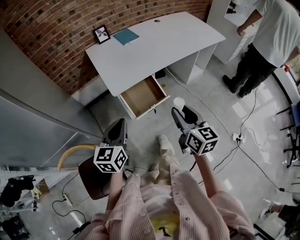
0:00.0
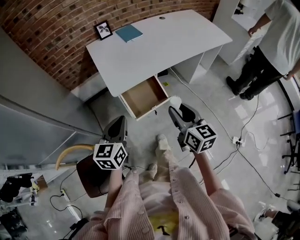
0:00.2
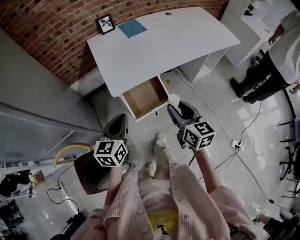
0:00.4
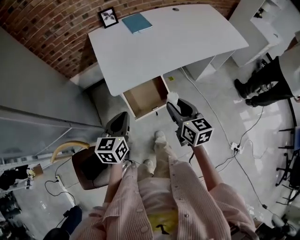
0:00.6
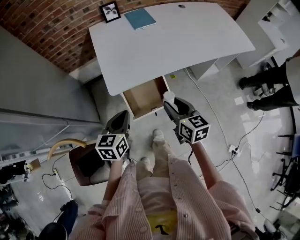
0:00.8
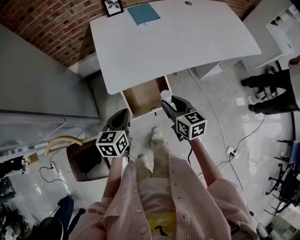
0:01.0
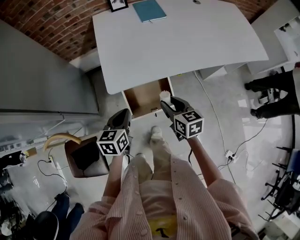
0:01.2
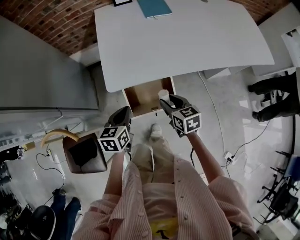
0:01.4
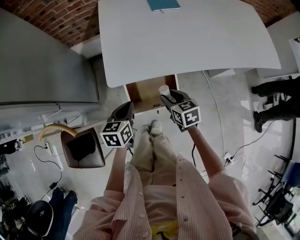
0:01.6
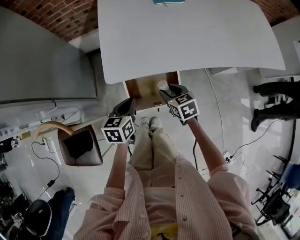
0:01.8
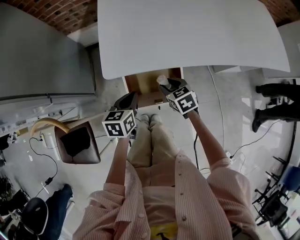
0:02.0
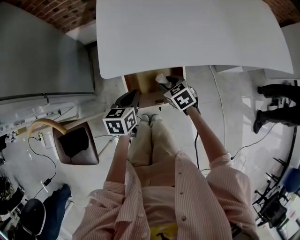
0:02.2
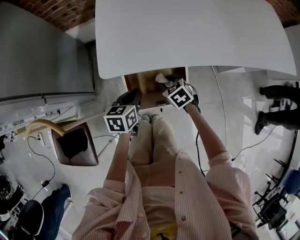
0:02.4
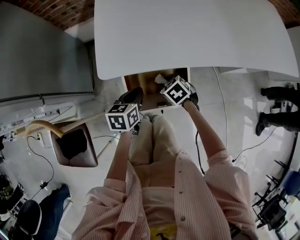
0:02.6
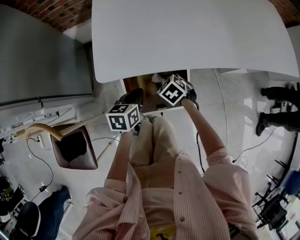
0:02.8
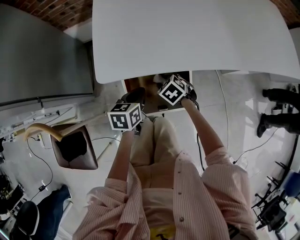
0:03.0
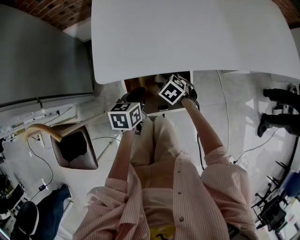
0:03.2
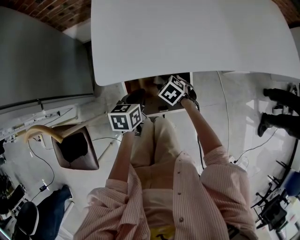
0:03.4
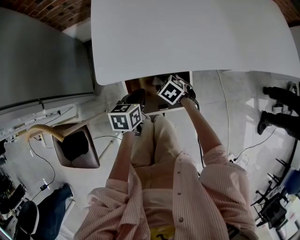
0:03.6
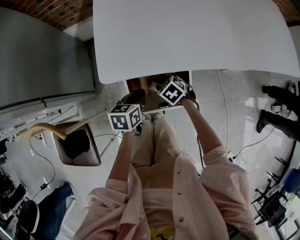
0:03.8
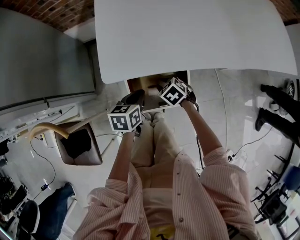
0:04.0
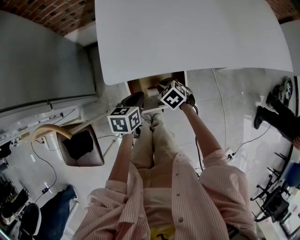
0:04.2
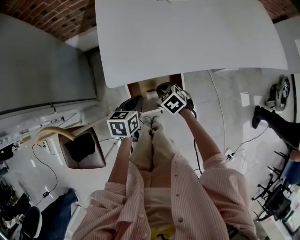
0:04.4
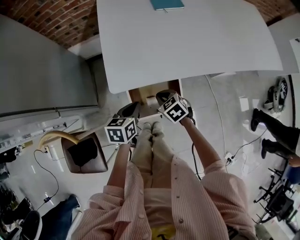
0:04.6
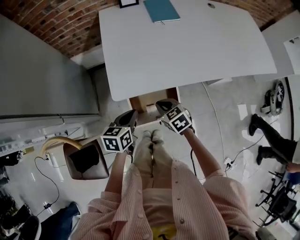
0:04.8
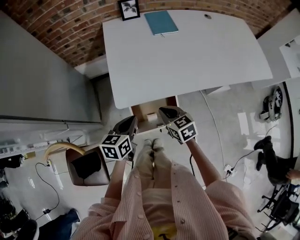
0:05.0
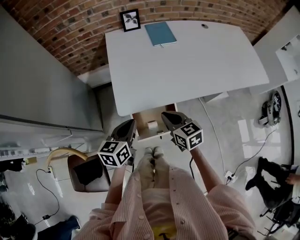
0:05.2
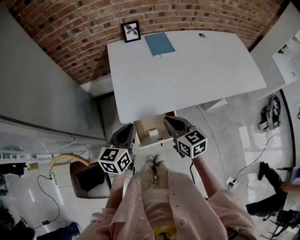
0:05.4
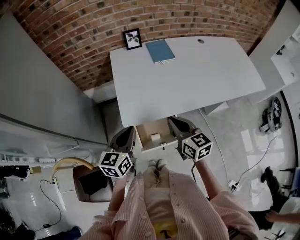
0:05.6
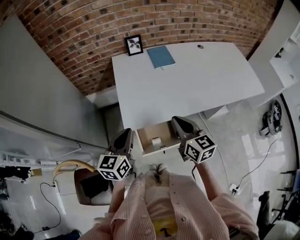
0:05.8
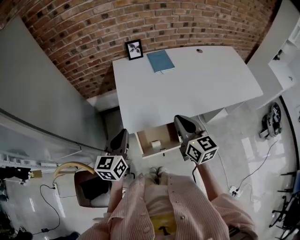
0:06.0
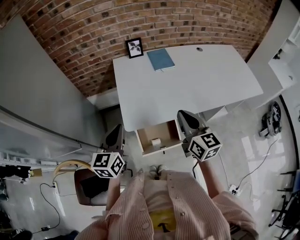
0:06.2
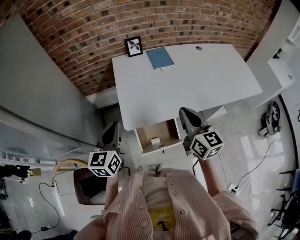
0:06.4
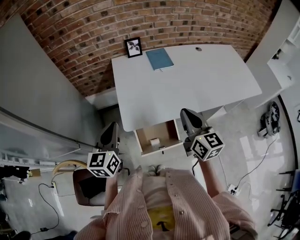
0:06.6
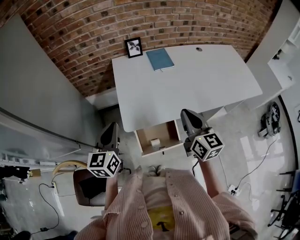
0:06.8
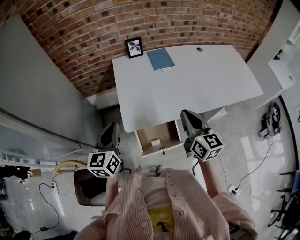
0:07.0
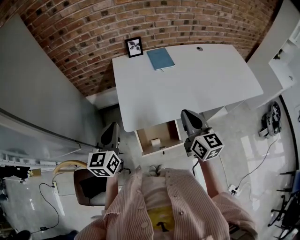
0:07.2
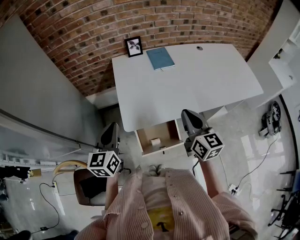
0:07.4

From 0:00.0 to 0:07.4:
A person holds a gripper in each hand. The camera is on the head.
From 0:00.0 to 0:01.4: The left gripper goes roughly 25 cm downward and forward, and rotates approximately 30 degrees. The right gripper heads forward and downward, covering approximately 35 cm, and rotates roughly 40 degrees.
From 0:01.4 to 0:03.0: The right gripper moves downward and forward, some 25 cm, and turns by roughly 50 degrees. Meanwhile the left gripper shifts some 20 cm downward.
From 0:03.0 to 0:04.4: The grippers both shift upward by roughly 10 cm. The right gripper closes its fingers.
From 0:04.4 to 0:06.0: The grippers both shift upward by roughly 35 cm. The left gripper changes its angle by some 30 degrees; the right gripper tips its fingers upward by roughly 50 degrees.
From 0:06.0 to 0:07.4: The grippers stay close to where they were, moving slightly.

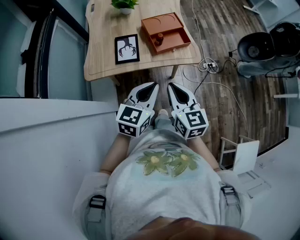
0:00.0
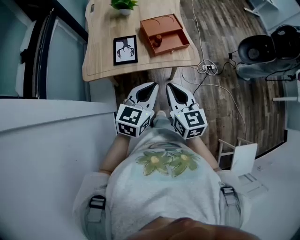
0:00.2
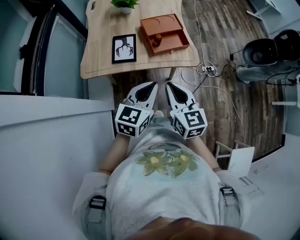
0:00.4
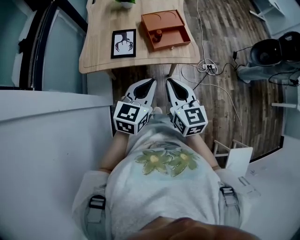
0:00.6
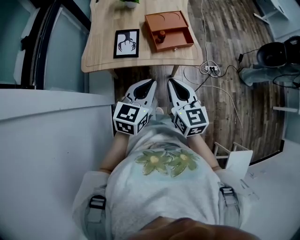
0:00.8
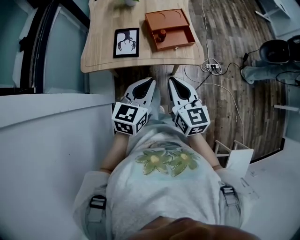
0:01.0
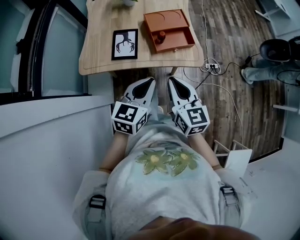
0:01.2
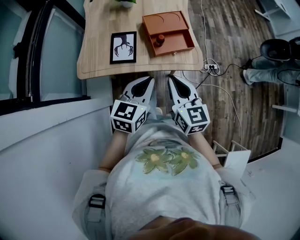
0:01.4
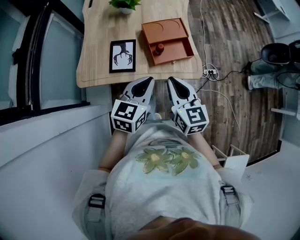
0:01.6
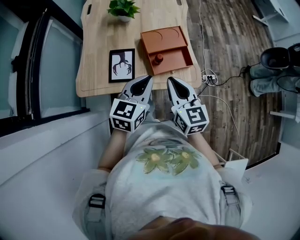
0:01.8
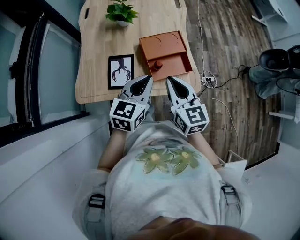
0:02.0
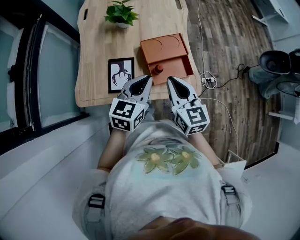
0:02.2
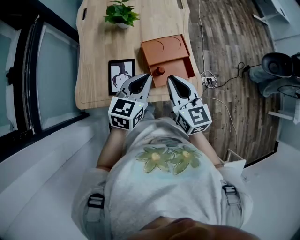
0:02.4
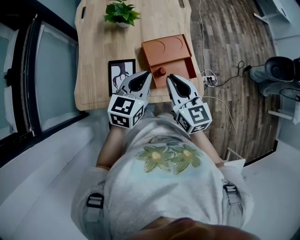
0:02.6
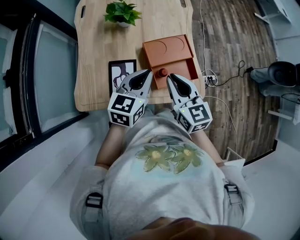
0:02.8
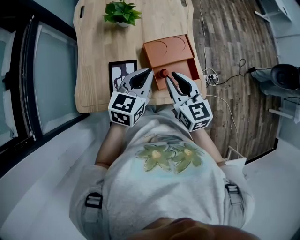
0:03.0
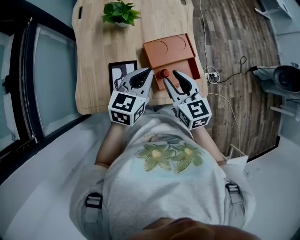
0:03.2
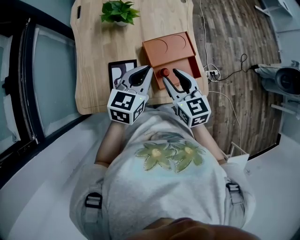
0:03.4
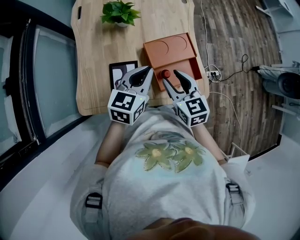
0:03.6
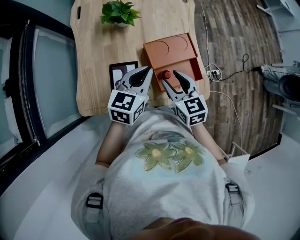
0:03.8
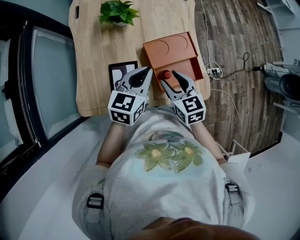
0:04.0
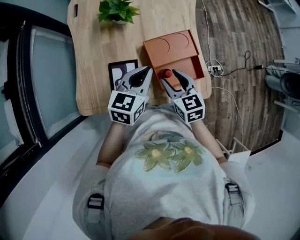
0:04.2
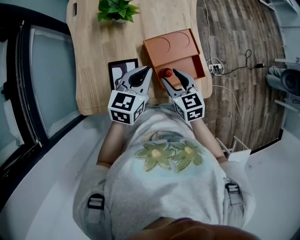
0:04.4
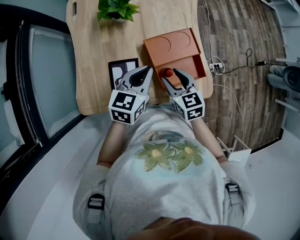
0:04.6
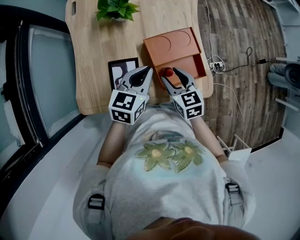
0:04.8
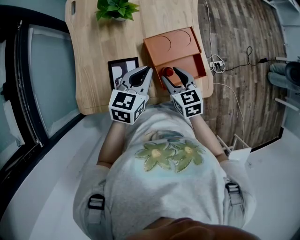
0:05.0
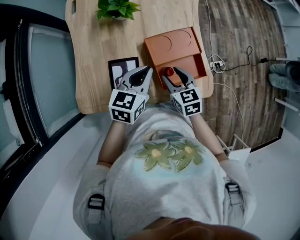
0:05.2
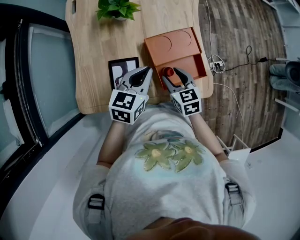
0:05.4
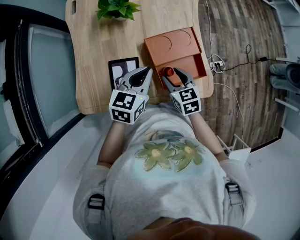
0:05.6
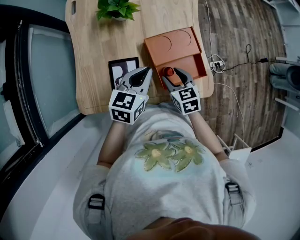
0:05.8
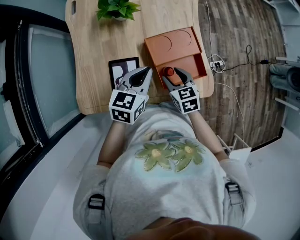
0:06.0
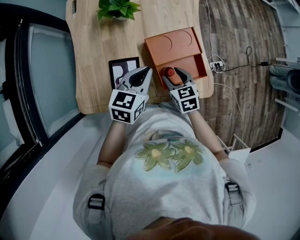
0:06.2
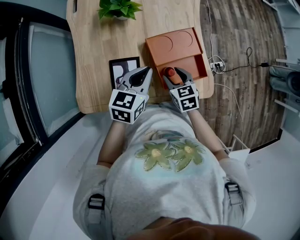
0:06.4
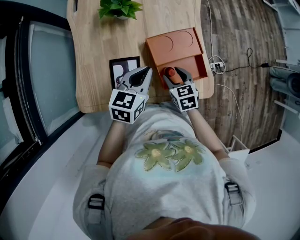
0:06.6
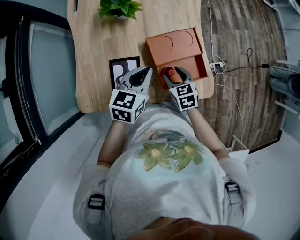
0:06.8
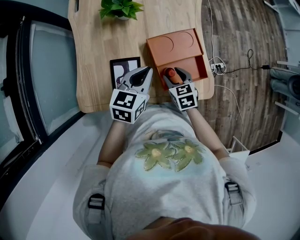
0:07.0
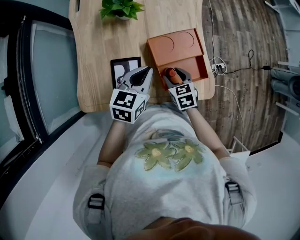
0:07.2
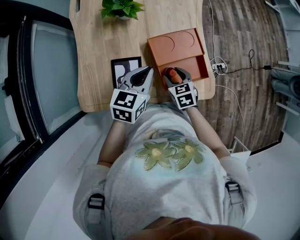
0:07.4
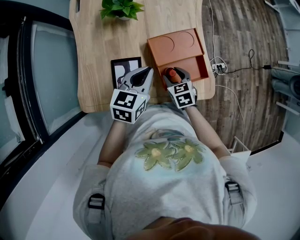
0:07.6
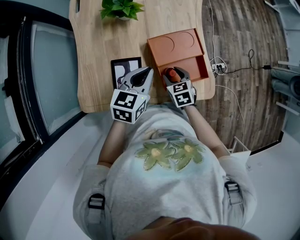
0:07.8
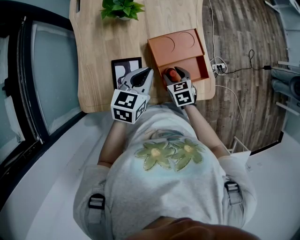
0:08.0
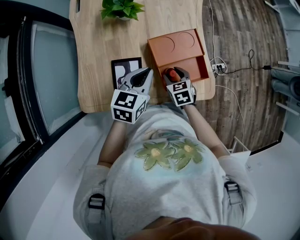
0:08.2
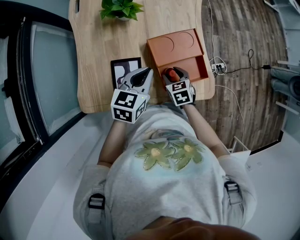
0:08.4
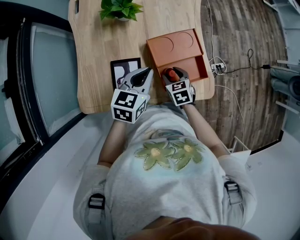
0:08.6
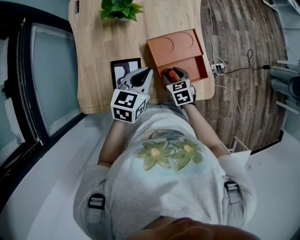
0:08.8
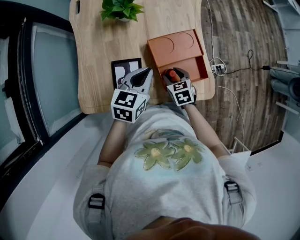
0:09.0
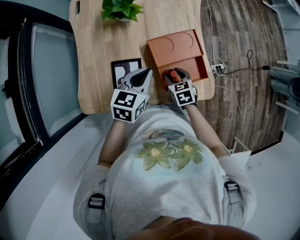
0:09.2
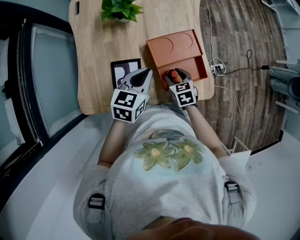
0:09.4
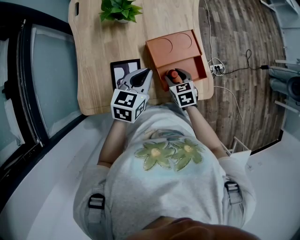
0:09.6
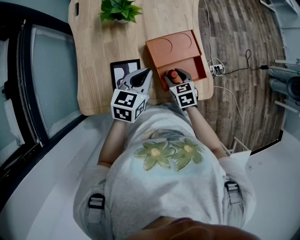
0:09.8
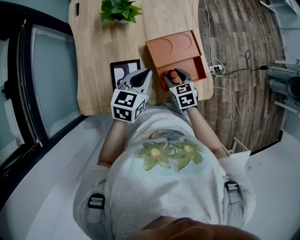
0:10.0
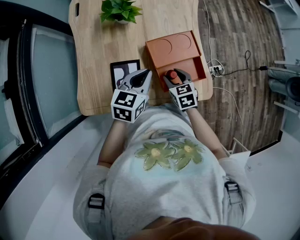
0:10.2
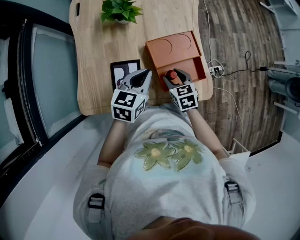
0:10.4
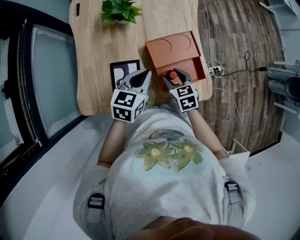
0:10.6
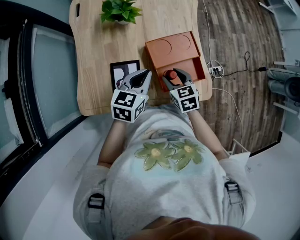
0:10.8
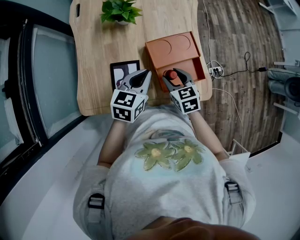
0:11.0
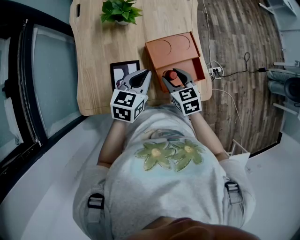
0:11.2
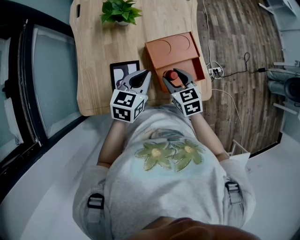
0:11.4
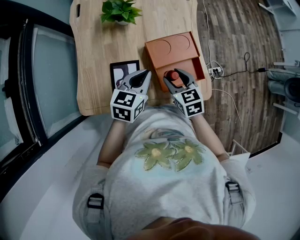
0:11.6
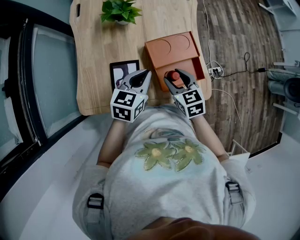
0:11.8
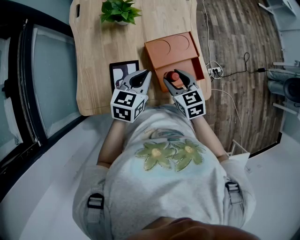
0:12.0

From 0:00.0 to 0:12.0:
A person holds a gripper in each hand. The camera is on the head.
From 0:00.0 to 0:01.6: The two grippers go approximately 15 cm forward.
From 0:01.6 to 0:03.0: Both grippers travel together forward, roughly 20 cm.
From 0:03.0 to 0:04.4: The right gripper travels downward by roughly 10 cm, and opens up. Meanwhile the left gripper moves approximately 5 cm.
From 0:04.4 to 0:06.0: The right gripper moves downward, roughly 5 cm.
From 0:06.0 to 0:10.4: There are only small adjustments of the grippers.
From 0:10.4 to 0:12.0: The right gripper is displaced upward by some 5 cm.

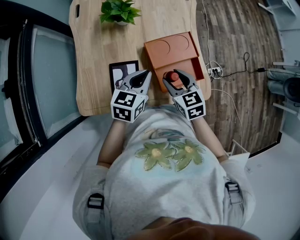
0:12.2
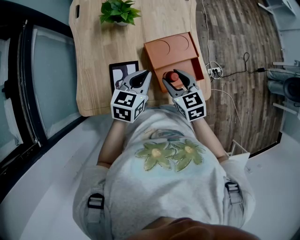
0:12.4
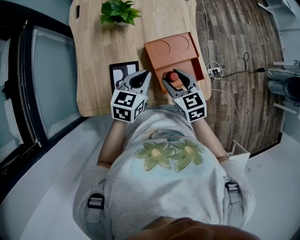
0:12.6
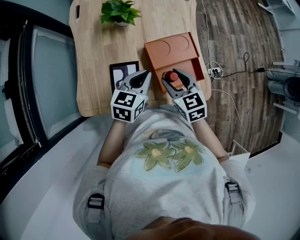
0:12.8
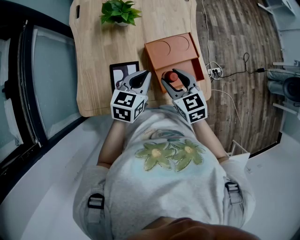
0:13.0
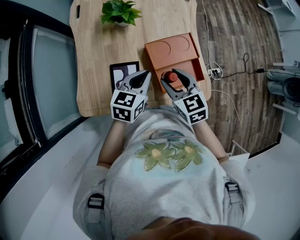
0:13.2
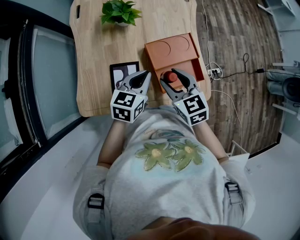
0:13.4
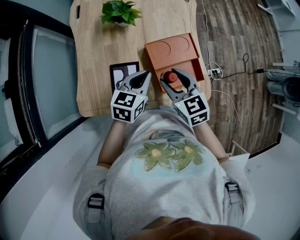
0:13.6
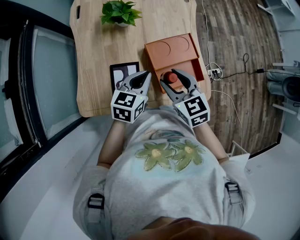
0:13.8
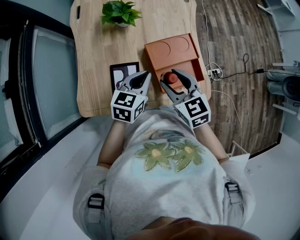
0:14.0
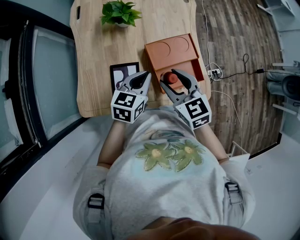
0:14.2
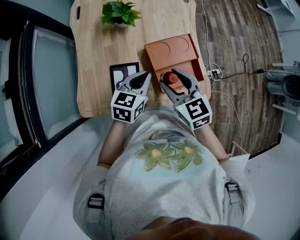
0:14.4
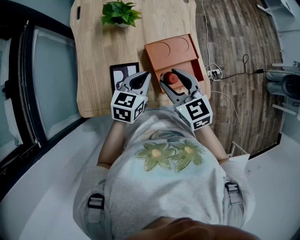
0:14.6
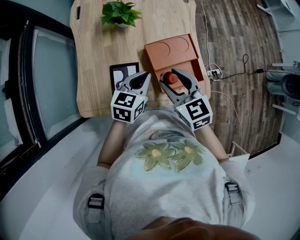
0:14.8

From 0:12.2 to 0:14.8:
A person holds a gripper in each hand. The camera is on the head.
From 0:12.2 to 0:13.4: The right gripper moves roughly 5 cm.
From 0:13.4 to 0:14.8: There are only small adjustments of the grippers.

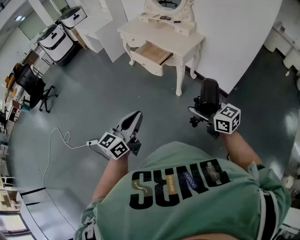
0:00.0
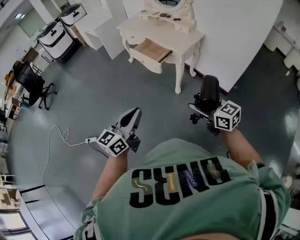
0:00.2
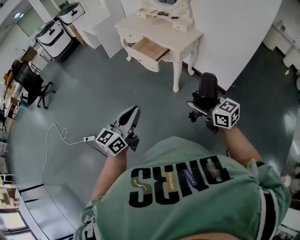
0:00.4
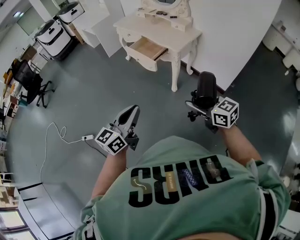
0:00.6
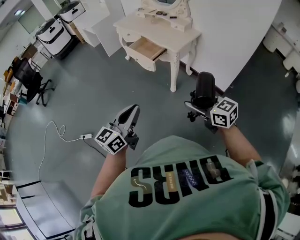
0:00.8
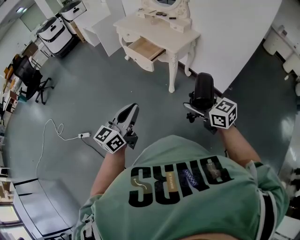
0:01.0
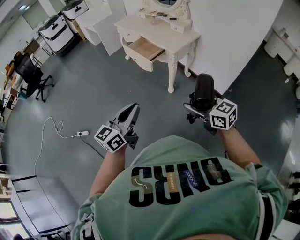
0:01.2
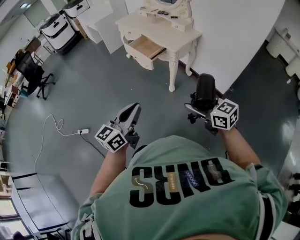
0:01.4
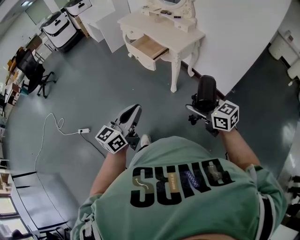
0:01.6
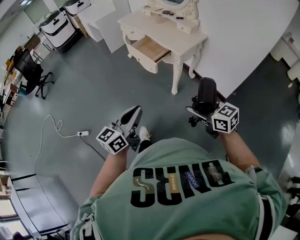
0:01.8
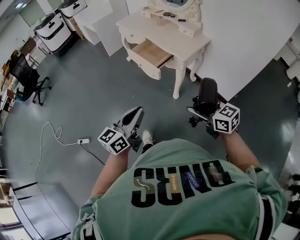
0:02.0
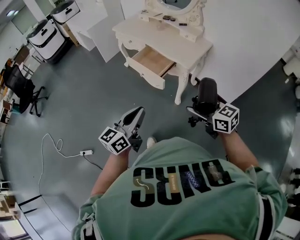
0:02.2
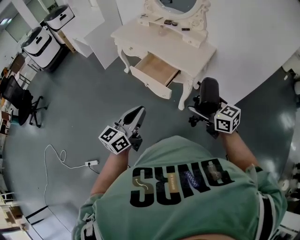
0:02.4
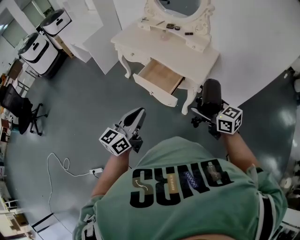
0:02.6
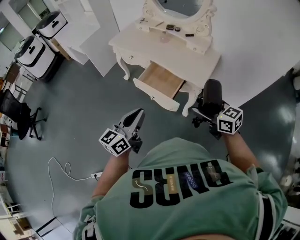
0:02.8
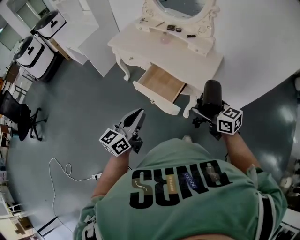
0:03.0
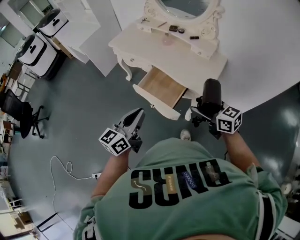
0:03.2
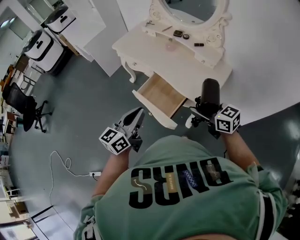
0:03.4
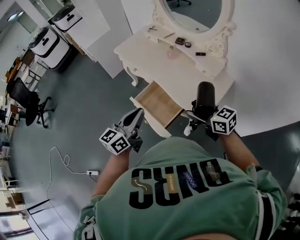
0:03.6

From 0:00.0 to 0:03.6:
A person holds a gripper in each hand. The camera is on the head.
From 0:00.0 to 0:01.8: Both grippers travel together to the right, approximately 5 cm.
From 0:01.8 to 0:03.6: Both grippers are carried forward, some 60 cm.
